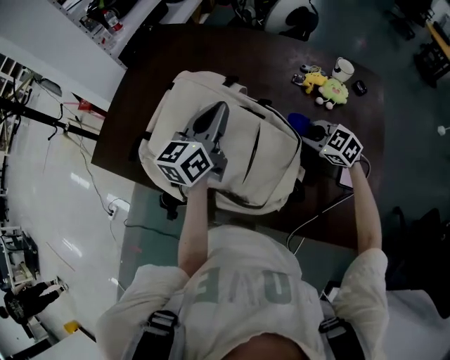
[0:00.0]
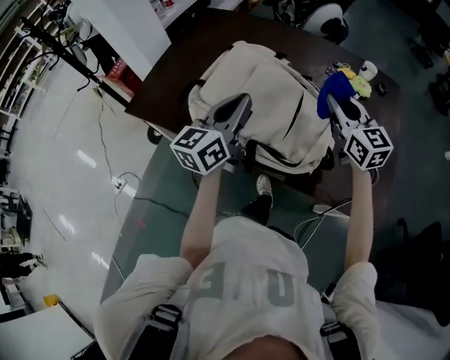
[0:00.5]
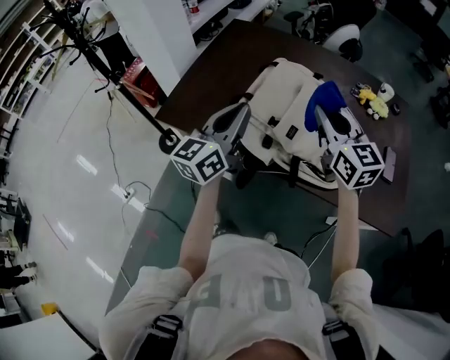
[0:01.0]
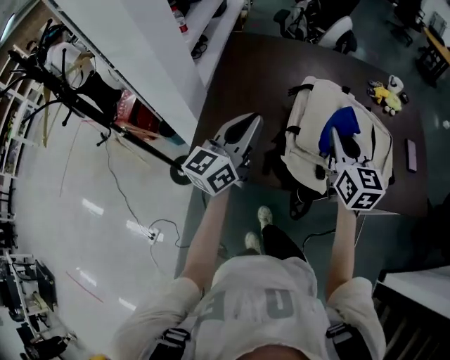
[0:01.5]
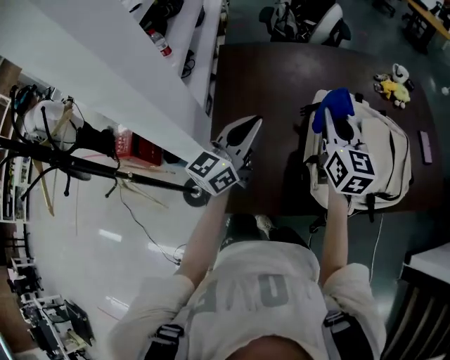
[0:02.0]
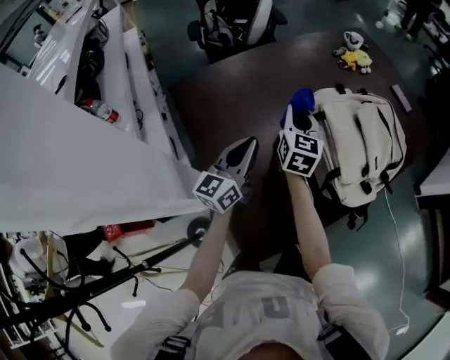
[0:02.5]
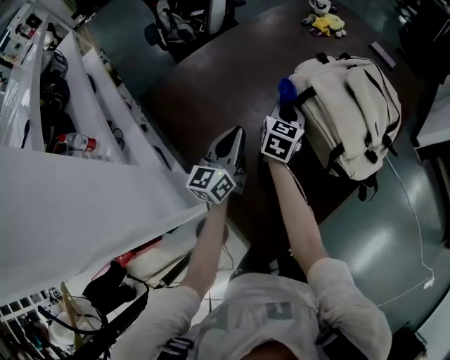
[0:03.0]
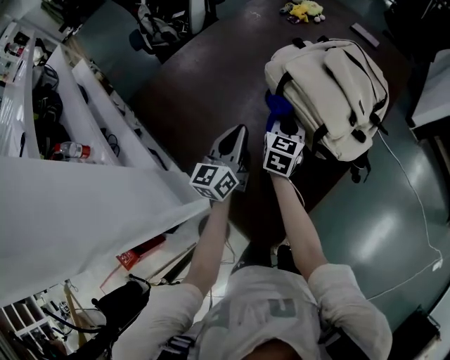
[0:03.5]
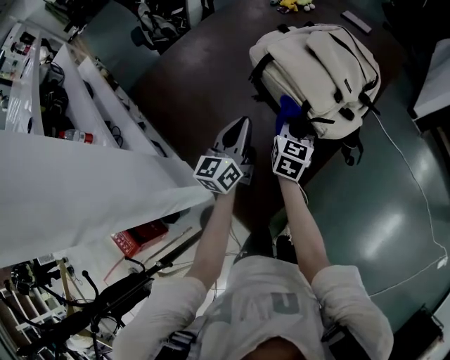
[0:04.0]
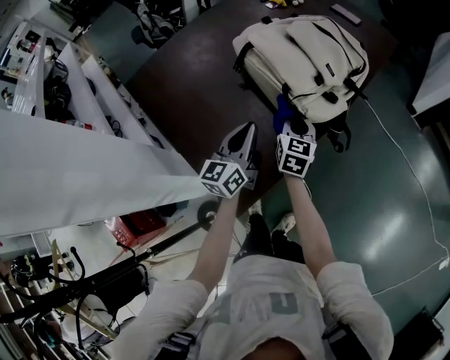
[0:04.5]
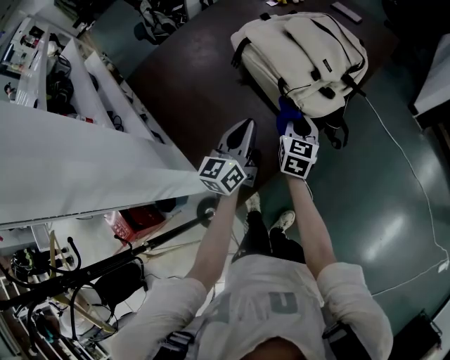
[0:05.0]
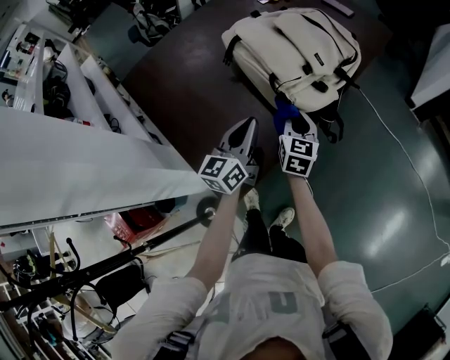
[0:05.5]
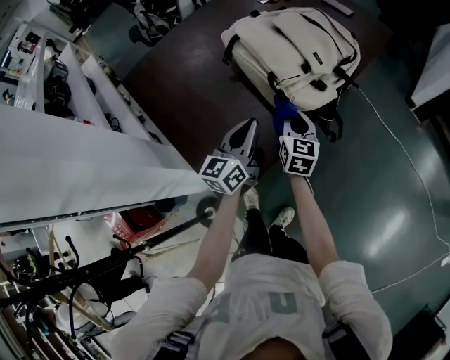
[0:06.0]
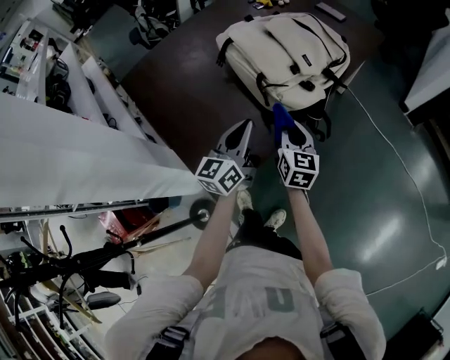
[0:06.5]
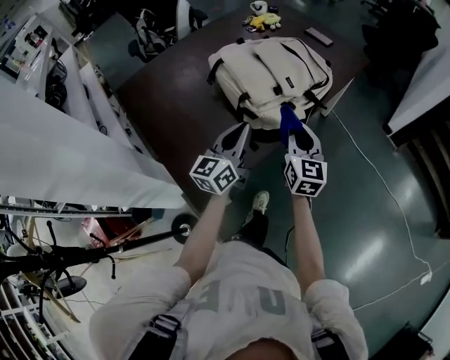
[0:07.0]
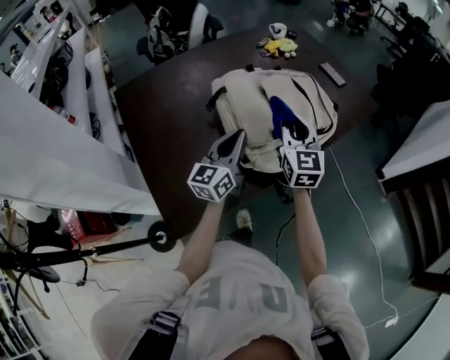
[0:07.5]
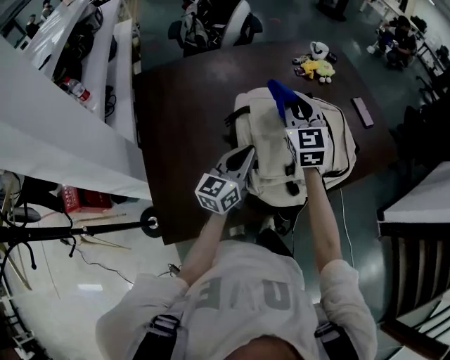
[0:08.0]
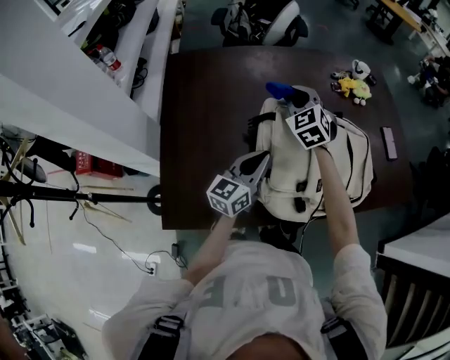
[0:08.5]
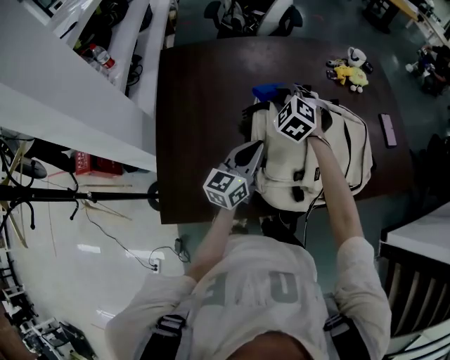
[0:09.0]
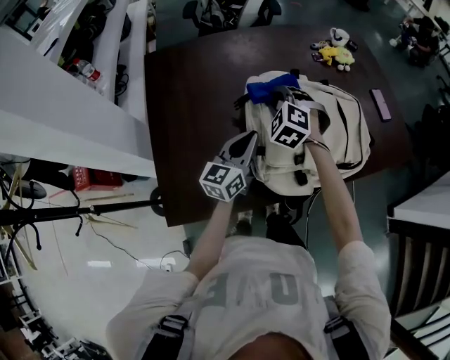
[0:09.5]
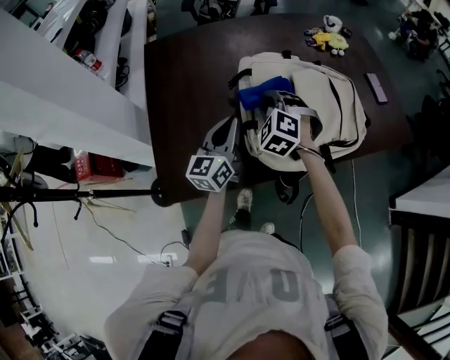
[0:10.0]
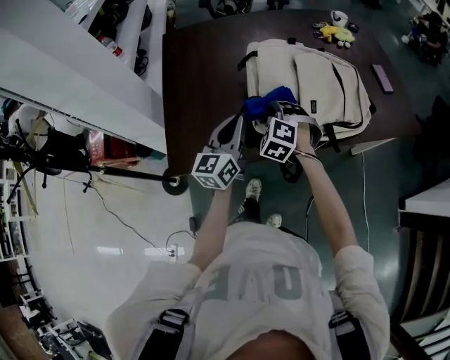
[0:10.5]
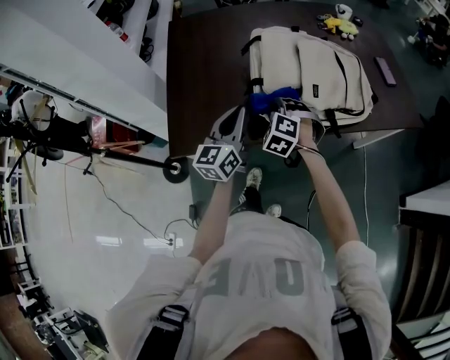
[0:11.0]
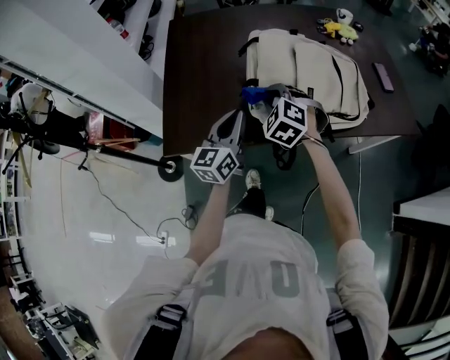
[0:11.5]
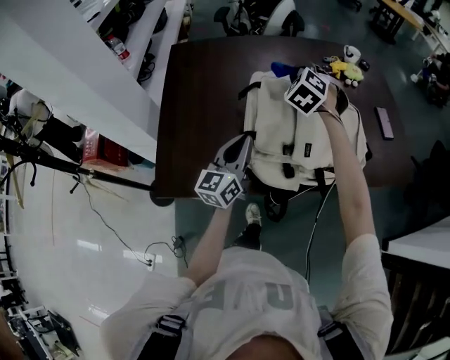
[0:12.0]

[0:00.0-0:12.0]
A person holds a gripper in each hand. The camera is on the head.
0:00.0 to 0:02.0: The right gripper moves roughly 50 cm, and points its fingers roughly 40 degrees further upward. Meanwhile the left gripper changes place by about 40 cm, and changes its angle by approximately 30 degrees.
0:02.0 to 0:04.0: Both grippers move downward, some 15 cm. The right gripper turns by about 60 degrees; the left gripper swivels approximately 30 degrees.
0:04.0 to 0:06.0: Both grippers travel together to the right and backward, some 15 cm.
0:06.0 to 0:08.0: The right gripper moves roughly 35 cm, and turns by about 50 degrees. The left gripper shifts by about 15 cm.
0:08.0 to 0:10.0: The left gripper shifts approximately 5 cm to the left; the right gripper shifts about 15 cm downward, backward and to the left, and angles its fingers downward, by roughly 30 degrees.
0:10.0 to 0:12.0: The left gripper travels backward and back again, approximately 15 cm each way. The right gripper travels forward, upward and to the right by about 15 cm.

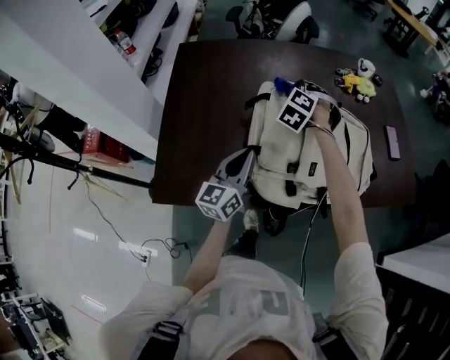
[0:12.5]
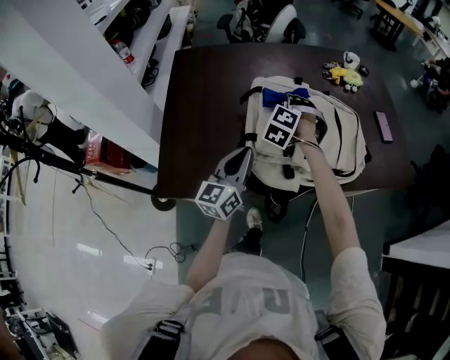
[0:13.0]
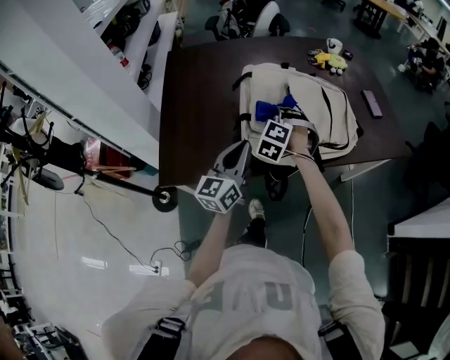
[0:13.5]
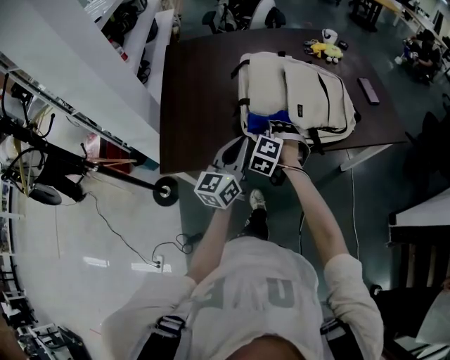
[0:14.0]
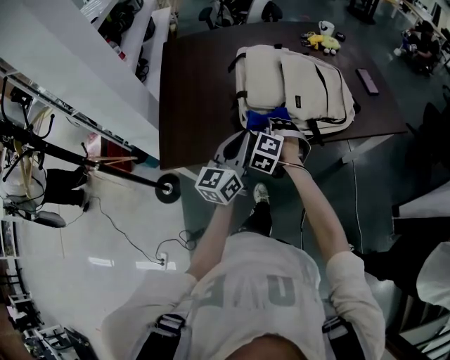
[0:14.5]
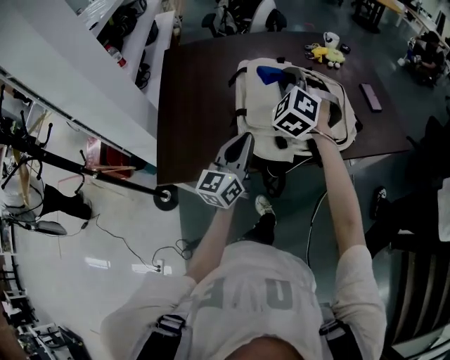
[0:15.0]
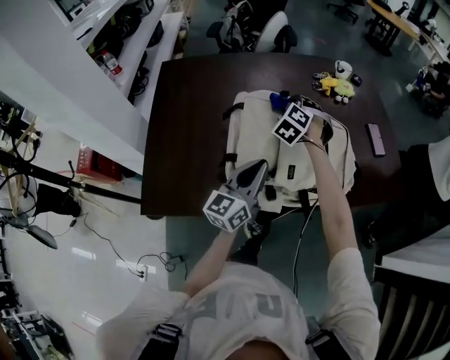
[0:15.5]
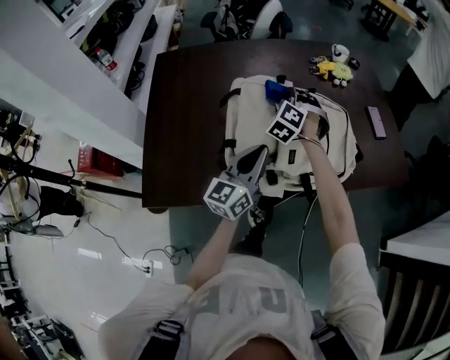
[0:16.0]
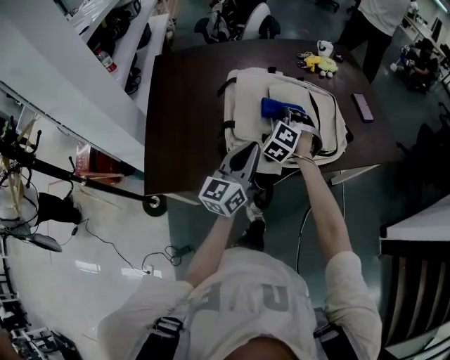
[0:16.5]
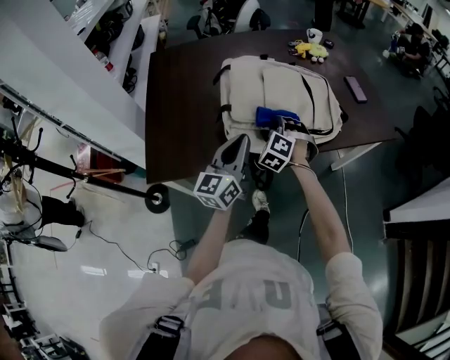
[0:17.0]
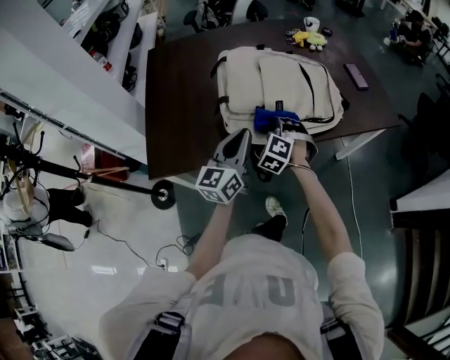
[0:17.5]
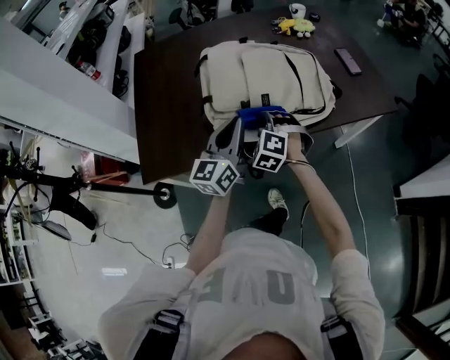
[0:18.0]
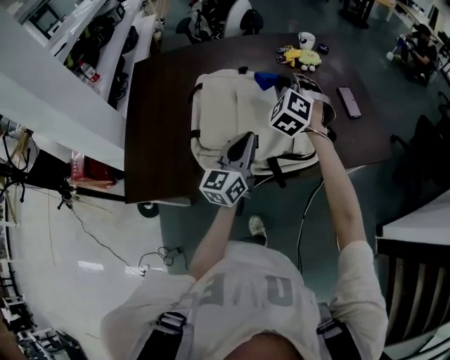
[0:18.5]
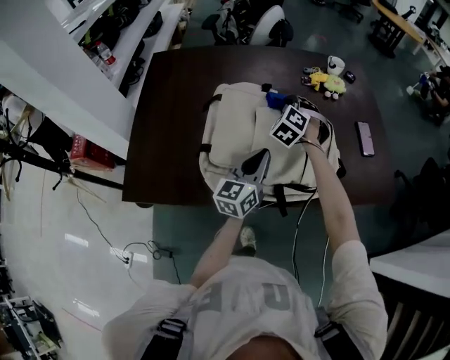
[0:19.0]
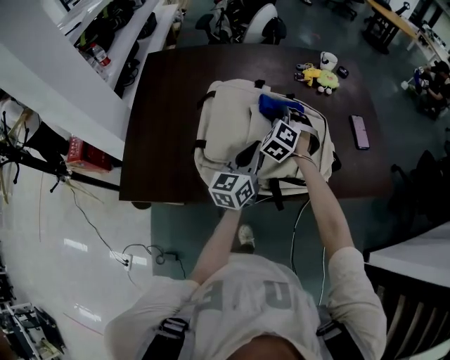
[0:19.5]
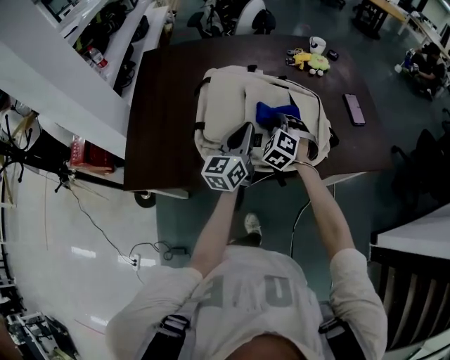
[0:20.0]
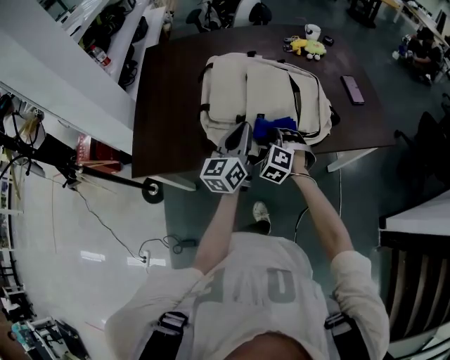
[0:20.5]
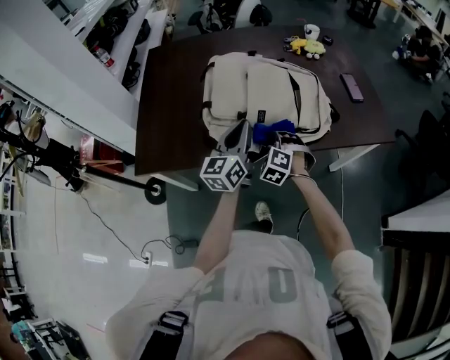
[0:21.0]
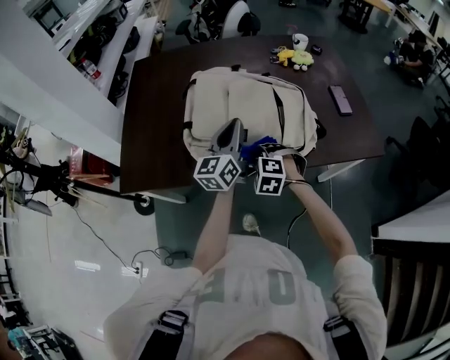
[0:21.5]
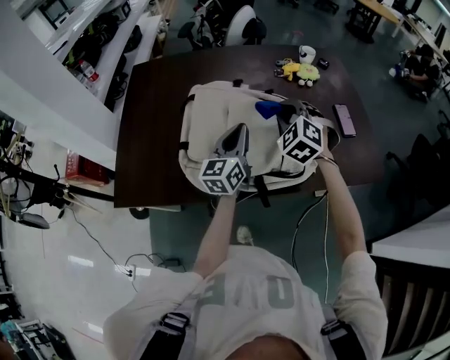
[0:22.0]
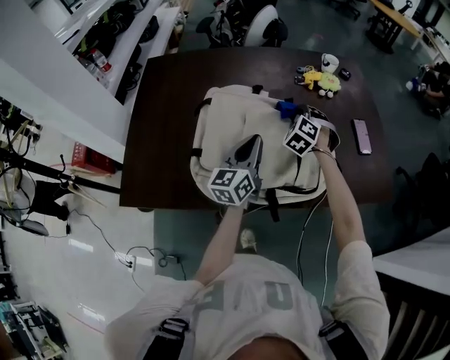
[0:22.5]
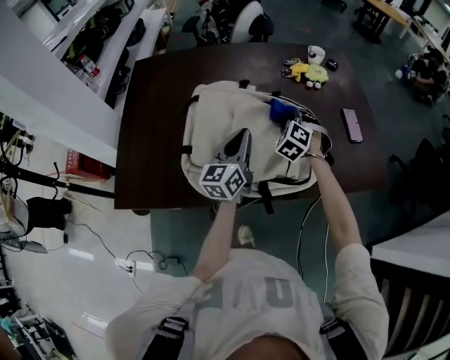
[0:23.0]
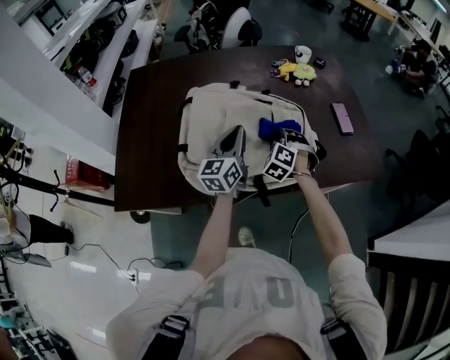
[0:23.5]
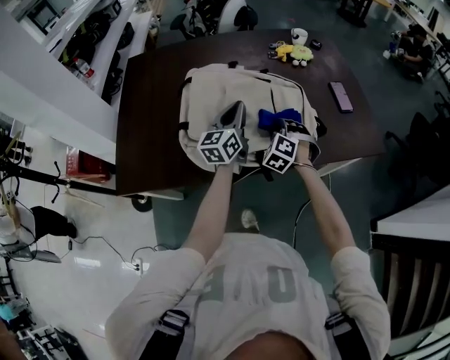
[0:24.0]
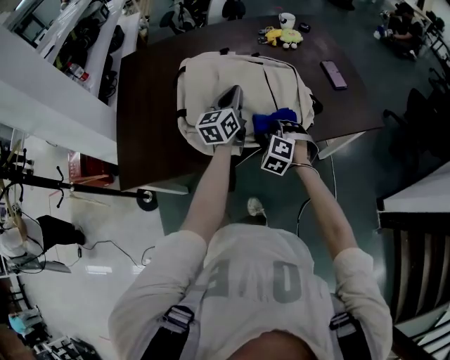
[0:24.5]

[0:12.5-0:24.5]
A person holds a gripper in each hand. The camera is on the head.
0:12.5 to 0:14.5: The left gripper goes approximately 15 cm backward; the right gripper shifts some 30 cm backward.
0:14.5 to 0:16.5: The right gripper heads forward, covering roughly 15 cm; the left gripper moves forward, some 10 cm.
0:16.5 to 0:18.5: The left gripper goes about 10 cm forward and to the right. The right gripper heads upward, forward and to the right, covering roughly 15 cm.
0:18.5 to 0:20.5: The left gripper shifts roughly 5 cm backward. Meanwhile the right gripper is displaced backward and downward by some 25 cm.
0:20.5 to 0:22.5: The right gripper travels forward by approximately 25 cm. Meanwhile the left gripper travels forward by about 15 cm.
0:22.5 to 0:24.5: The right gripper shifts about 25 cm backward.

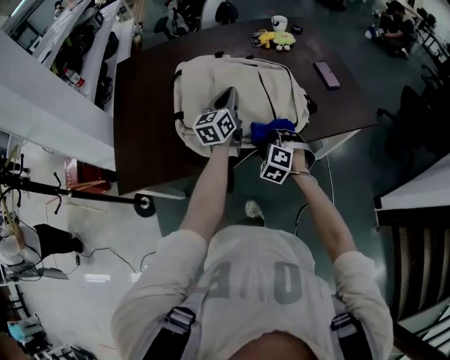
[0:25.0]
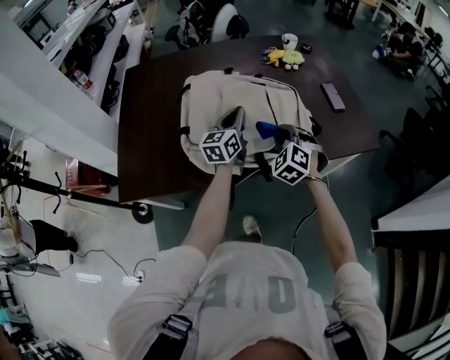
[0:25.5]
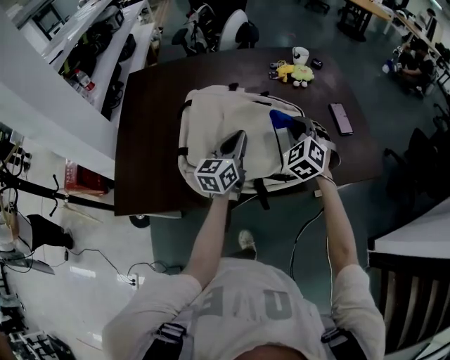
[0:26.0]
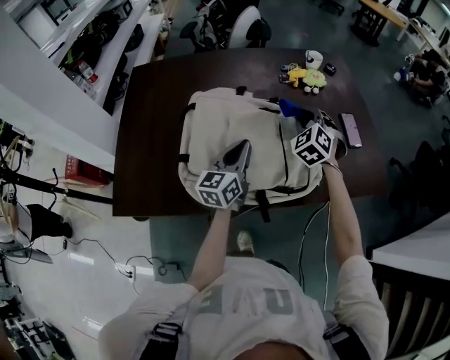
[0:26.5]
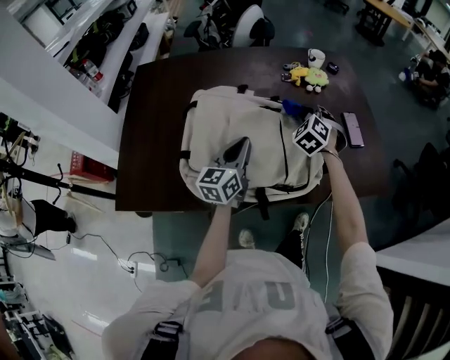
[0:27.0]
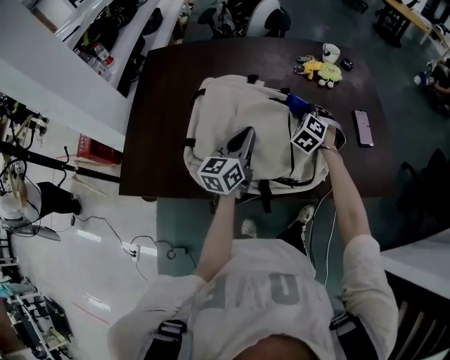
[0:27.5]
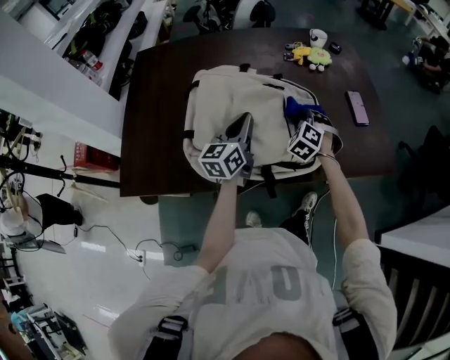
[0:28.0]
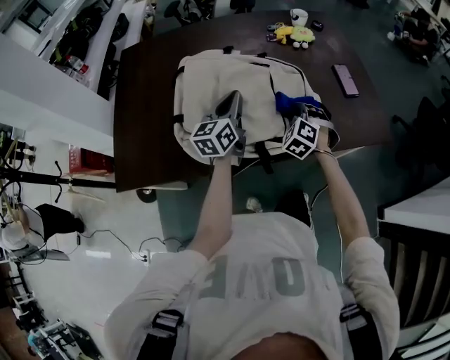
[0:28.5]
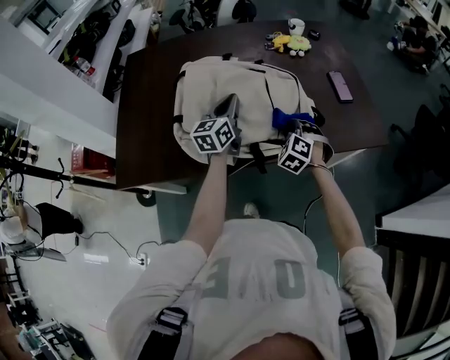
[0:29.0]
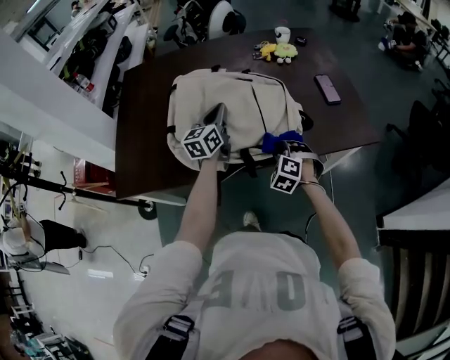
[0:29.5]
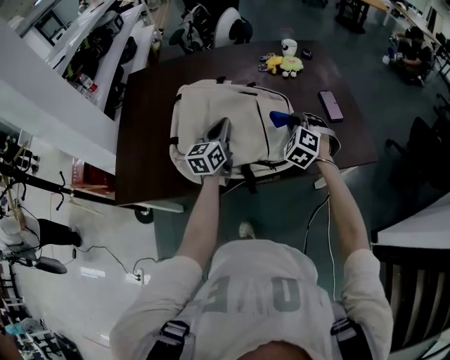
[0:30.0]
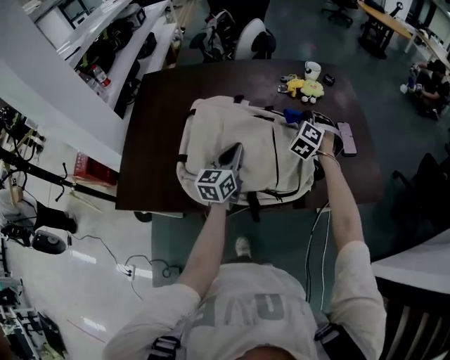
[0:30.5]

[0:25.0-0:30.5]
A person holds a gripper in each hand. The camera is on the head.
0:25.0 to 0:27.0: The right gripper goes some 30 cm forward.
0:27.0 to 0:28.5: The right gripper is displaced backward and downward by some 15 cm.
0:28.5 to 0:30.5: The right gripper is displaced forward and upward by some 15 cm.
